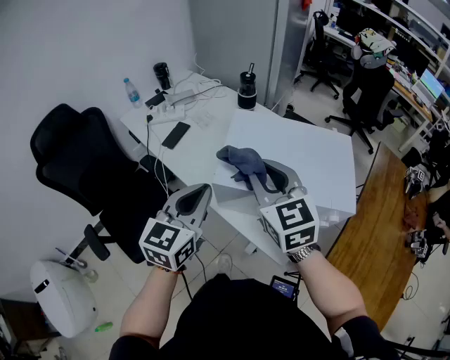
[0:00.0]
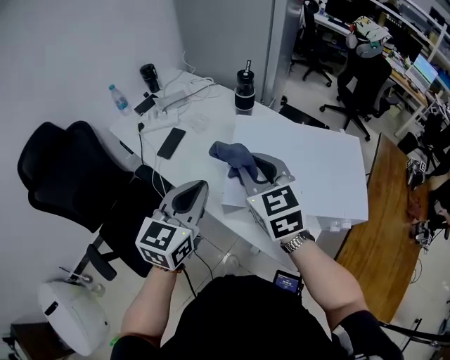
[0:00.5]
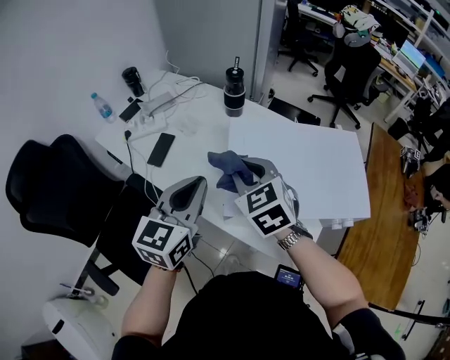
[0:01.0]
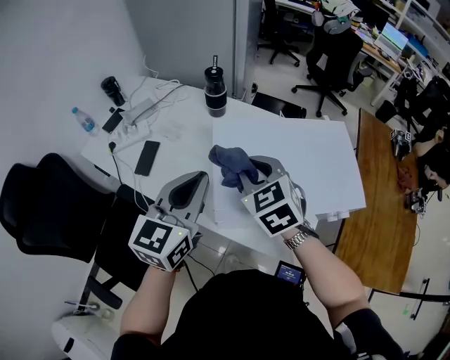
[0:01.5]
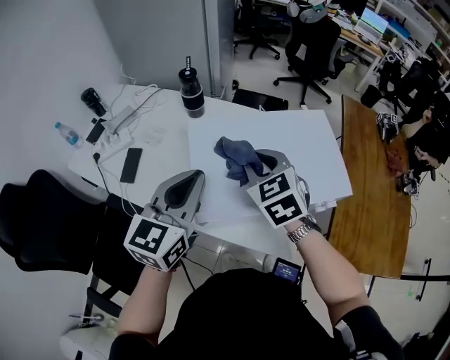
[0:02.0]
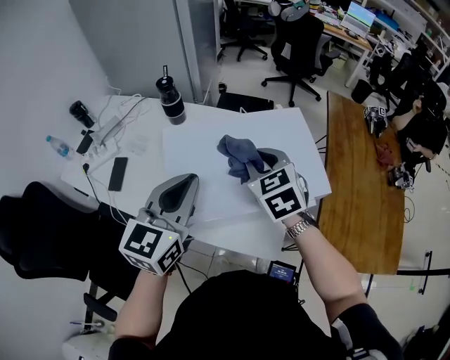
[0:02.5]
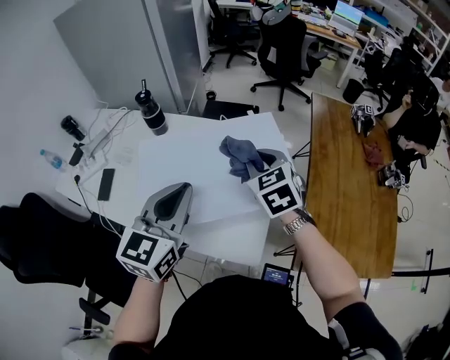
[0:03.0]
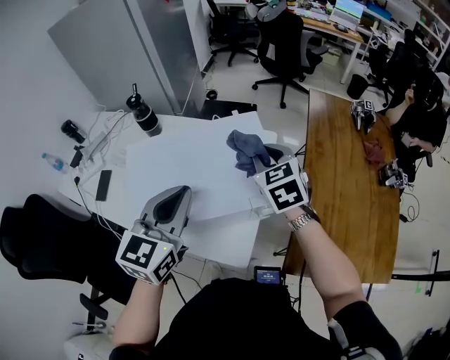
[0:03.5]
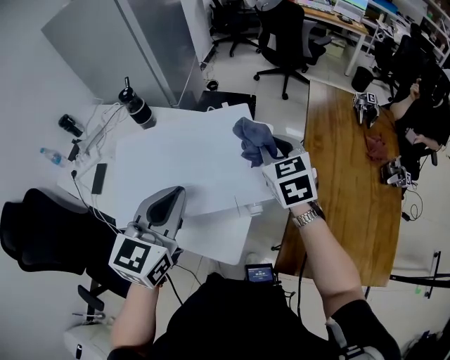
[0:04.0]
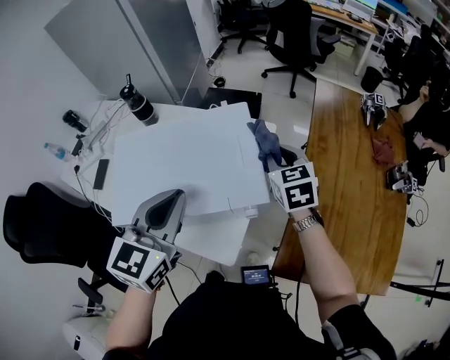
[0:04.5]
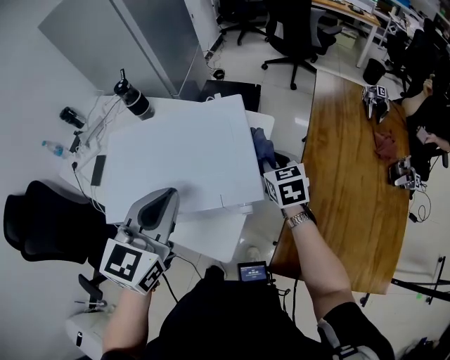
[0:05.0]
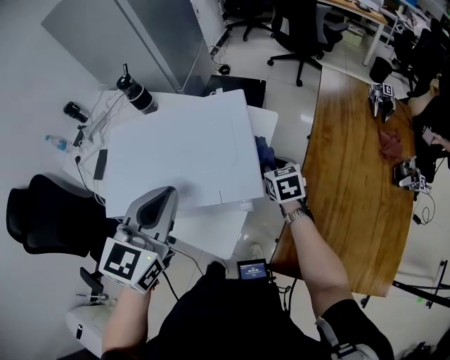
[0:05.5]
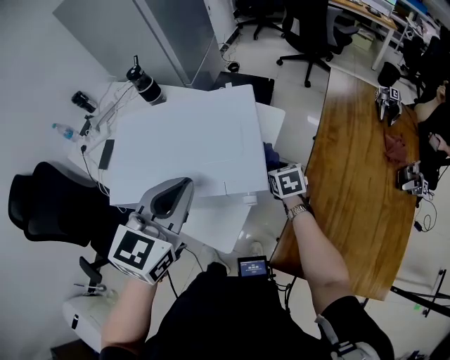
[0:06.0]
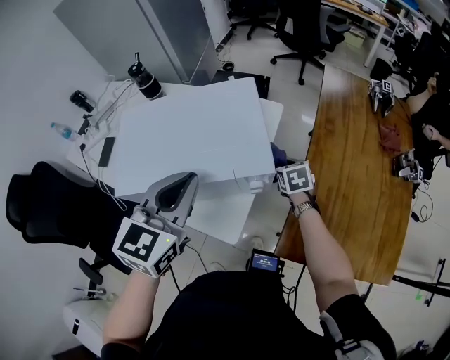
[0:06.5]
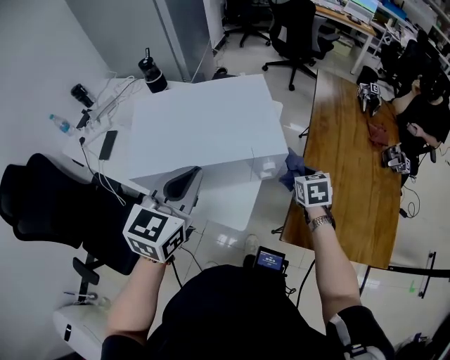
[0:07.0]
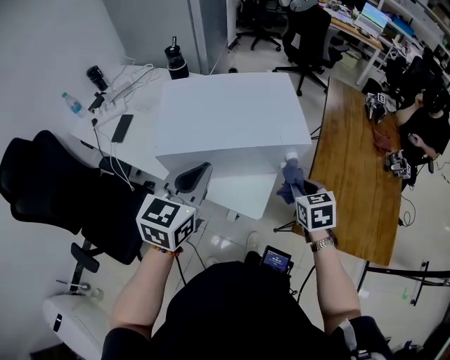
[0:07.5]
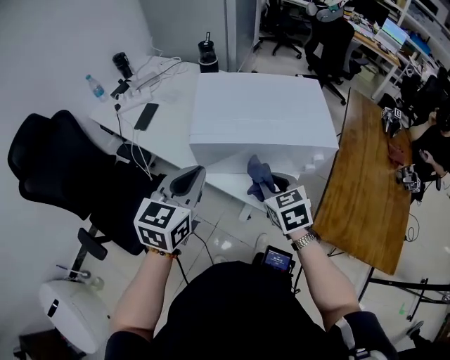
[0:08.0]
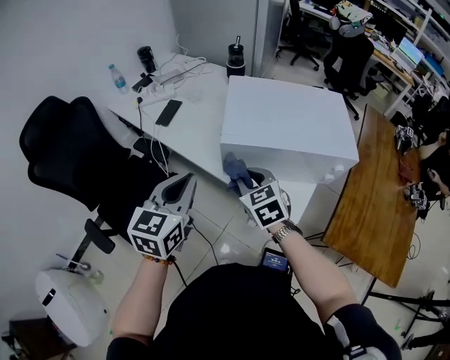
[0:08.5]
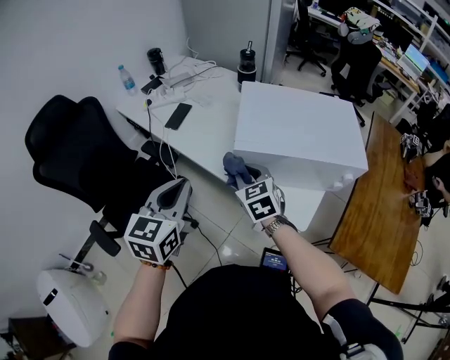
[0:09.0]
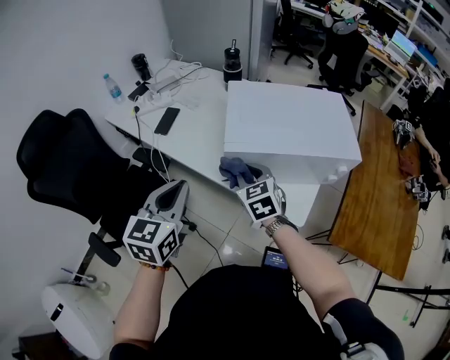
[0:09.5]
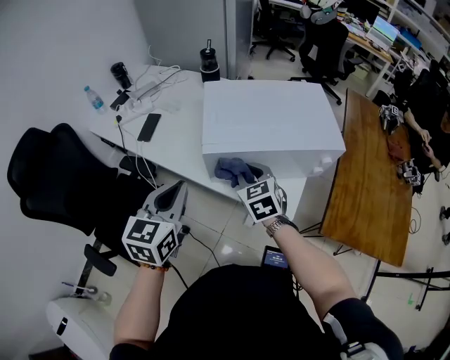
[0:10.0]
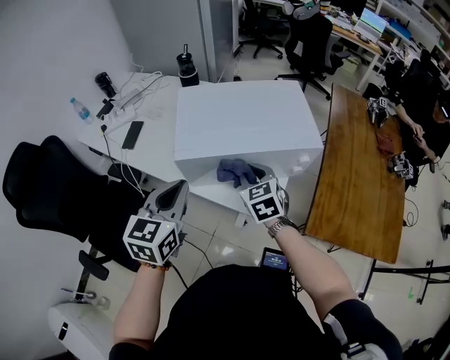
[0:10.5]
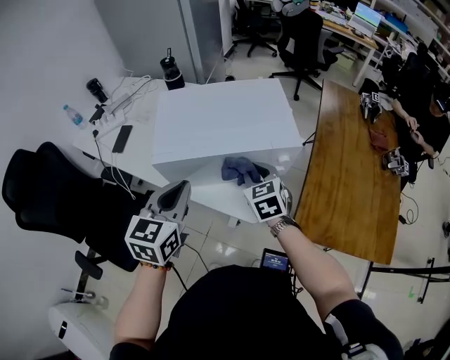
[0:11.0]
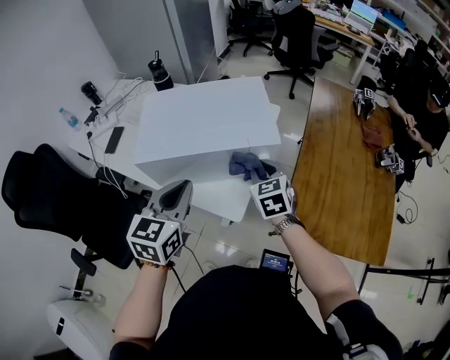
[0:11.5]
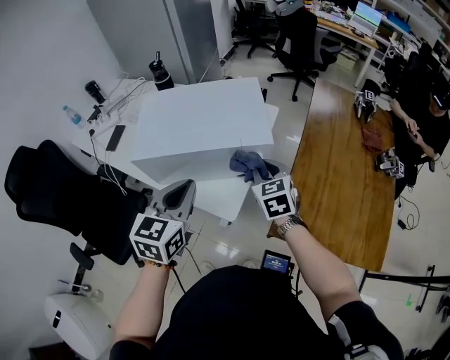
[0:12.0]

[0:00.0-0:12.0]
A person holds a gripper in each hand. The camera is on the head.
0:00.0 to 0:02.0: The right gripper goes some 15 cm forward and downward, and changes its angle by approximately 30 degrees. The left gripper is displaced forward by approximately 15 cm, and swivels approximately 20 degrees.
0:02.0 to 0:04.0: Both grippers move to the right, approximately 25 cm.
0:04.0 to 0:06.0: The right gripper travels downward by approximately 25 cm, and changes its angle by some 20 degrees. Meanwhile the left gripper moves some 5 cm.
0:06.0 to 0:08.0: The right gripper travels to the left, backward and upward by some 35 cm, and swivels some 20 degrees; the left gripper is displaced to the left and backward by about 25 cm.
0:08.0 to 0:10.0: The right gripper heads to the left and forward, covering approximately 10 cm. Meanwhile the left gripper is displaced to the left by approximately 10 cm.
0:10.0 to 0:12.0: The two grippers go about 30 cm to the right.

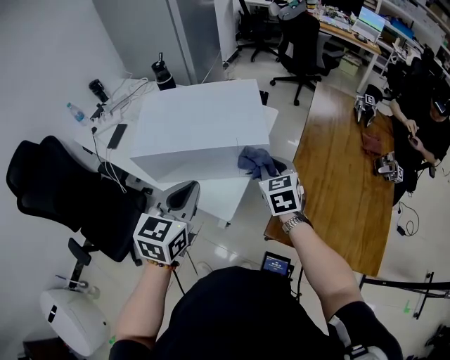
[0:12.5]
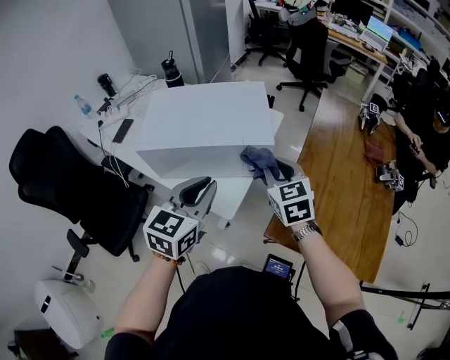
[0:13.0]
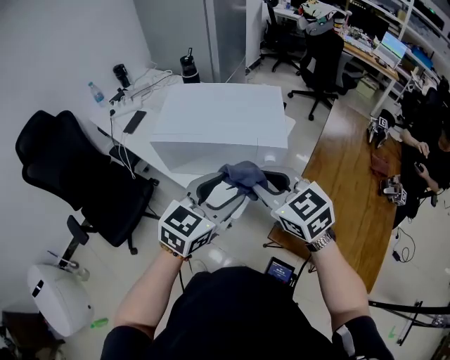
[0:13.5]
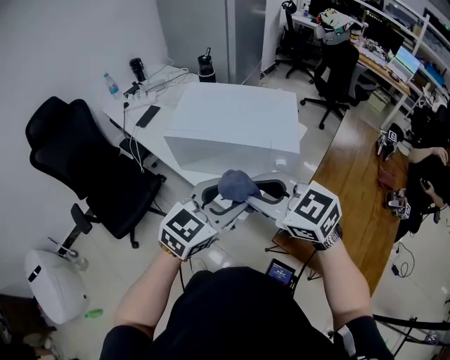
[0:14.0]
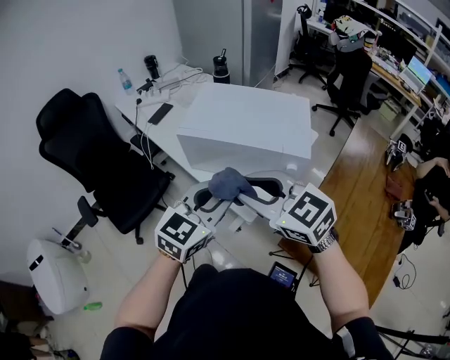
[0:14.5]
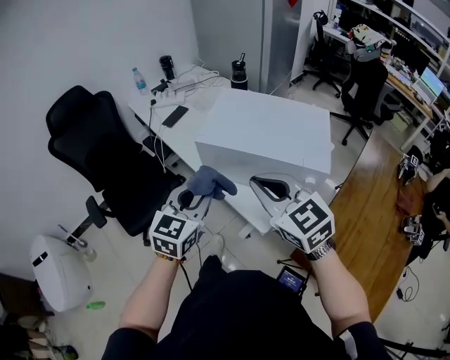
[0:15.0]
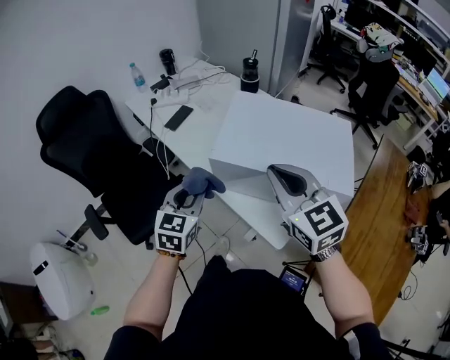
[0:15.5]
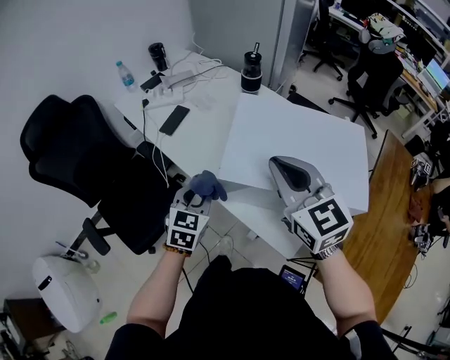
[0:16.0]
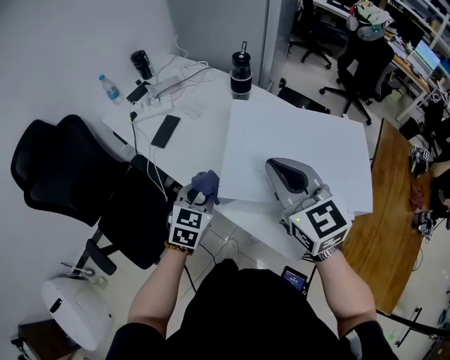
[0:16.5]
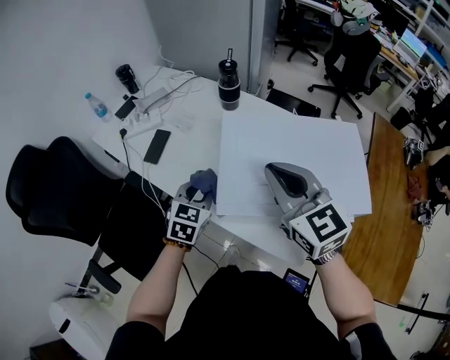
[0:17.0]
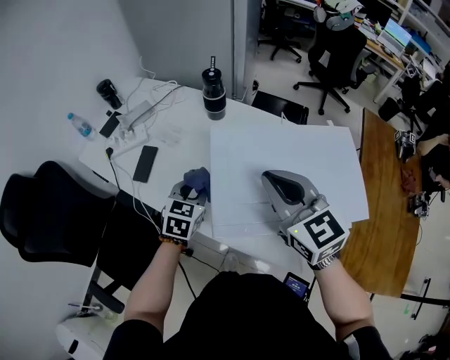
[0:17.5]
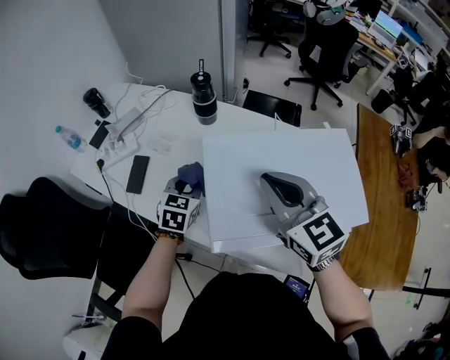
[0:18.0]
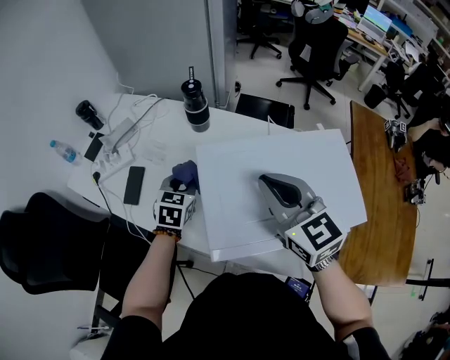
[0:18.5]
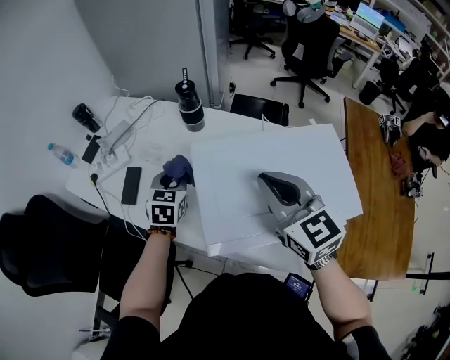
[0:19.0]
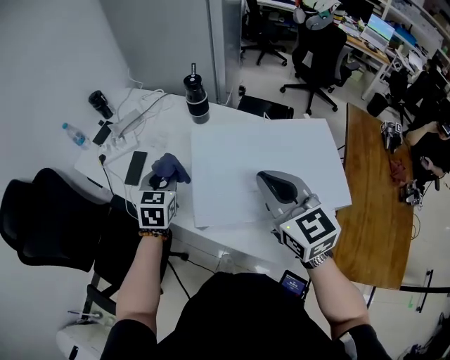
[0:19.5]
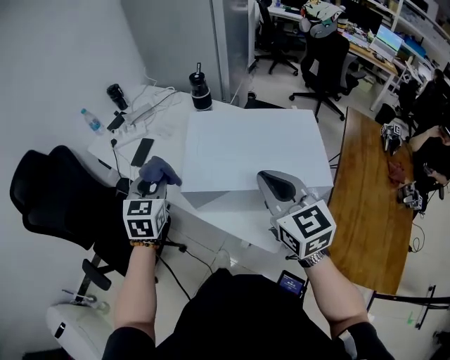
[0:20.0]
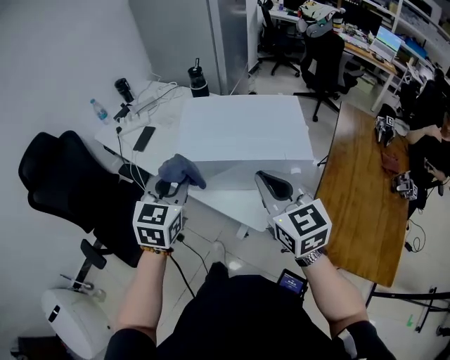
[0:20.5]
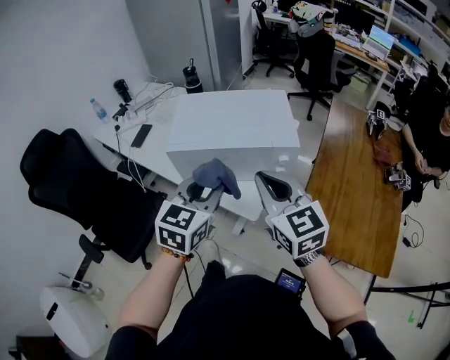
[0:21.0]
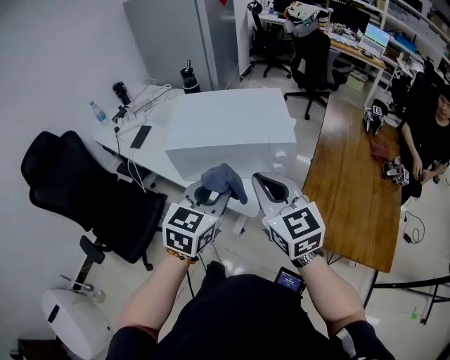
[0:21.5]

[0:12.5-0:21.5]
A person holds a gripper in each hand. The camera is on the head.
0:12.5 to 0:14.5: The left gripper shifts by roughly 5 cm, and opens up. The right gripper shifts by about 30 cm, and rotates approximately 60 degrees.
0:14.5 to 0:17.0: The right gripper travels forward by roughly 30 cm, changes its angle by roughly 30 degrees, and closes its fingers. Meanwhile the left gripper is displaced forward, downward and to the left by approximately 40 cm, and changes its angle by roughly 20 degrees.
0:17.0 to 0:19.5: The left gripper shifts some 10 cm forward and upward.
0:19.5 to 0:21.5: The left gripper goes roughly 50 cm backward and to the right, and rotates about 20 degrees. Meanwhile the right gripper is displaced backward by some 30 cm.

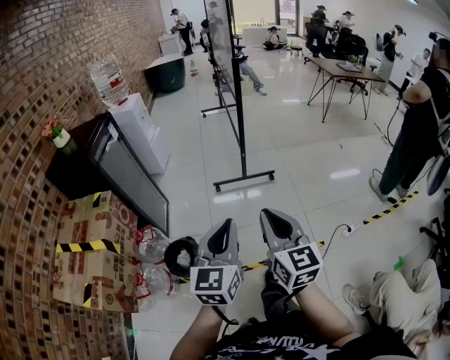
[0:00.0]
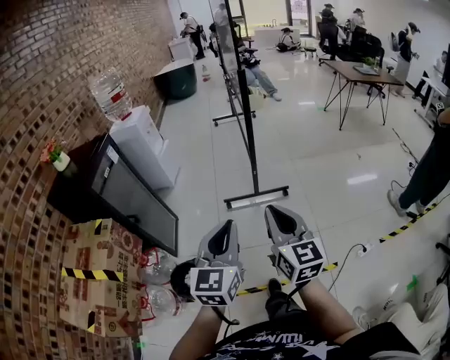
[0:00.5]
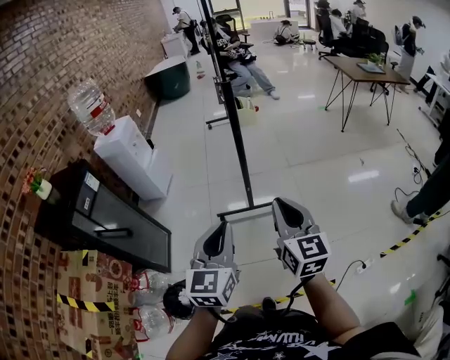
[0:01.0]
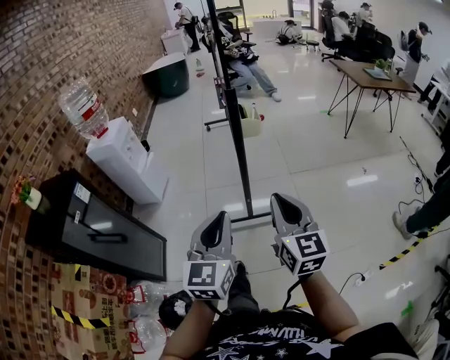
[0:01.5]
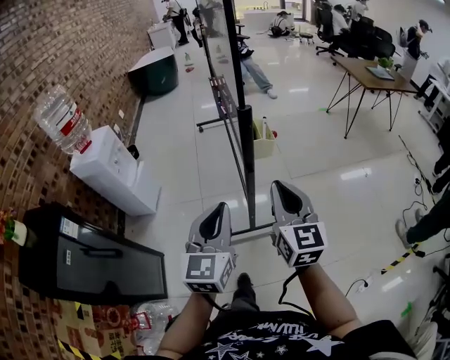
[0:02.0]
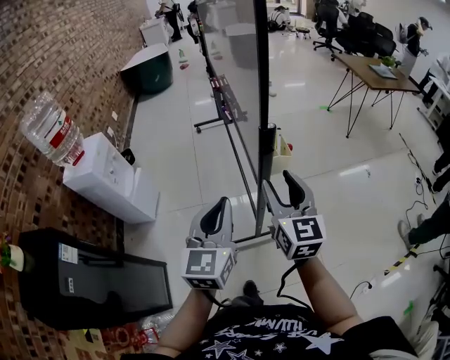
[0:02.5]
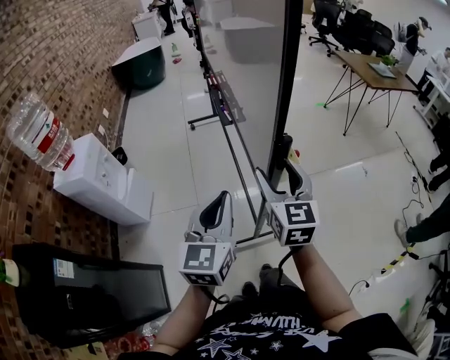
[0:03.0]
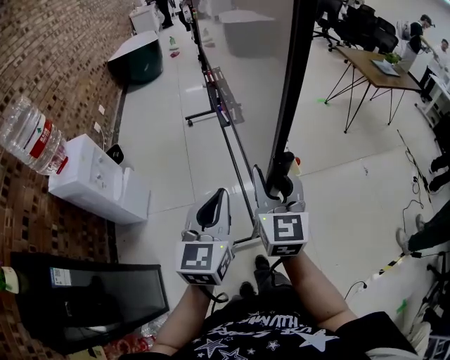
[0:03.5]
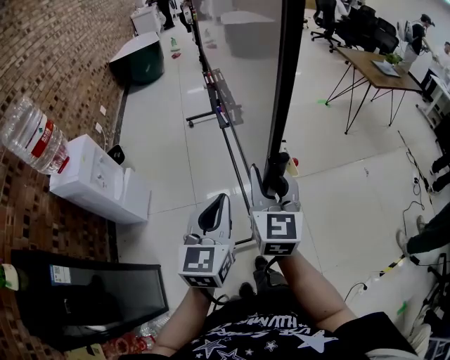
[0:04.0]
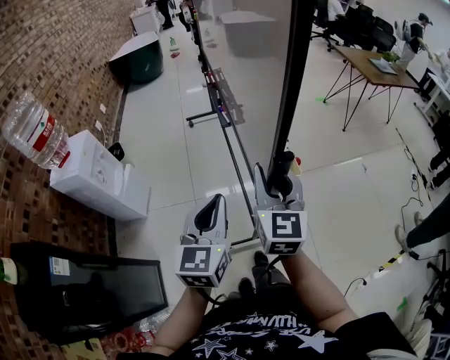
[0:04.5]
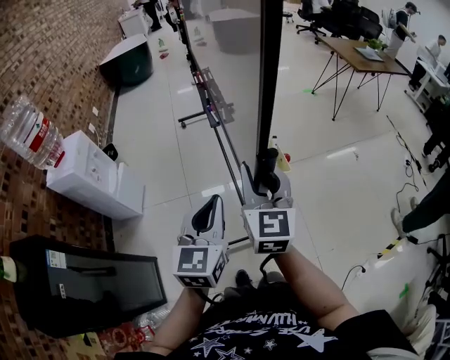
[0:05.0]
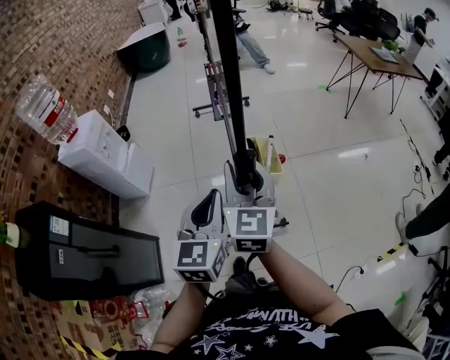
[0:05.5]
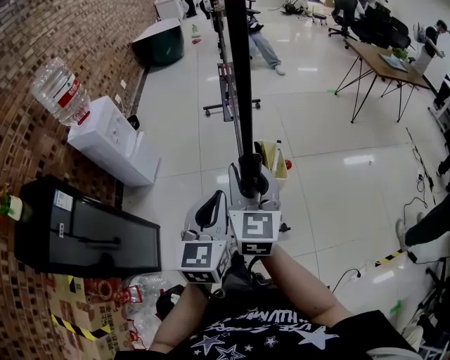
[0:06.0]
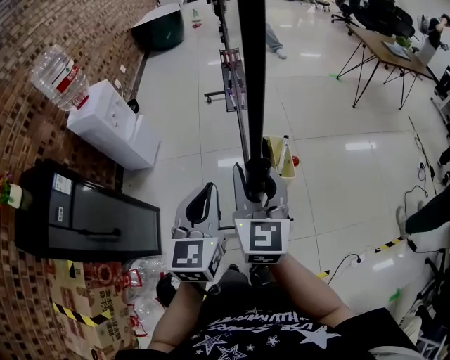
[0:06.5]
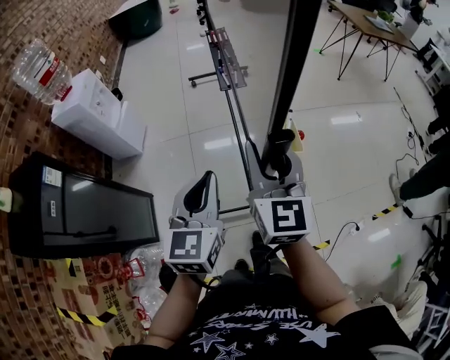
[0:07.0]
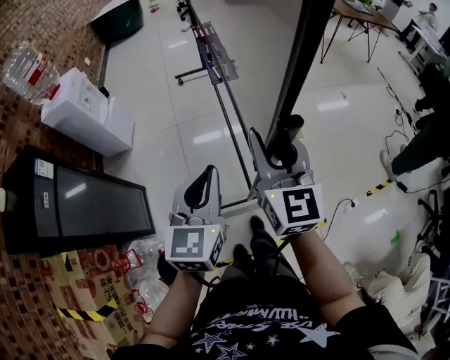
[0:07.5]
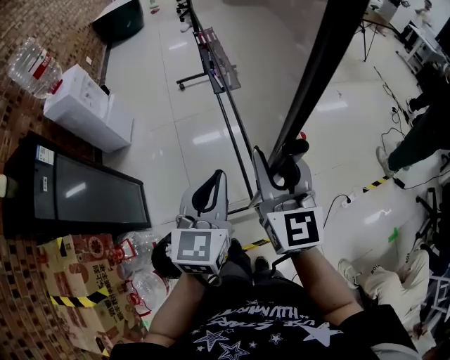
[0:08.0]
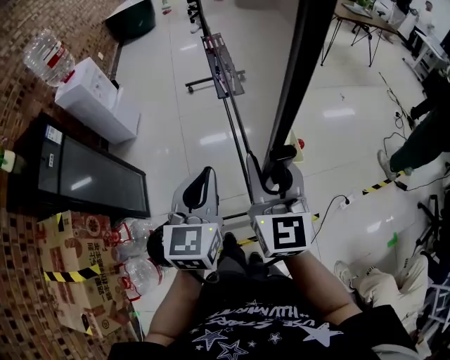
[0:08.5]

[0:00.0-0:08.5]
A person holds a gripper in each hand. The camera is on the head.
0:00.0 to 0:02.0: The two grippers travel together, forward, approximately 50 cm.
0:02.0 to 0:04.0: The left gripper goes roughly 15 cm forward. Meanwhile the right gripper shifts roughly 20 cm forward and to the left, and opens its fingers.
0:04.0 to 0:06.5: Both grippers travel together backward, some 20 cm.
0:06.5 to 0:08.5: The left gripper is displaced backward by some 20 cm, while the right gripper moves backward and to the right, some 25 cm.
